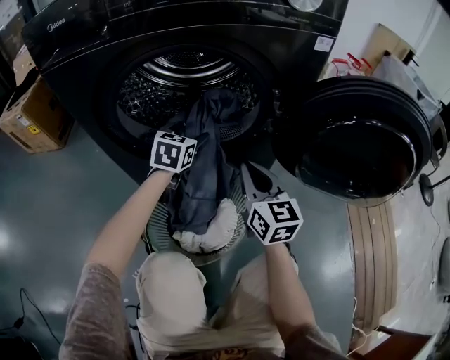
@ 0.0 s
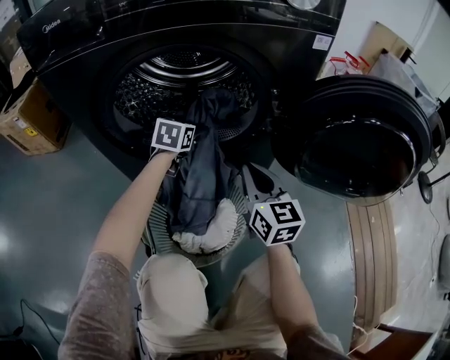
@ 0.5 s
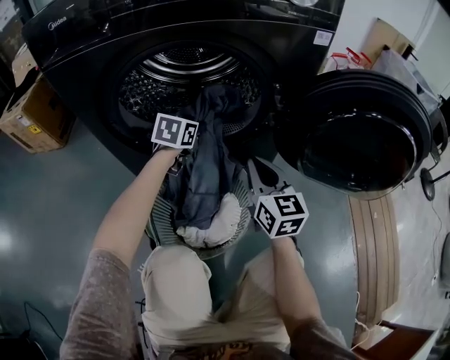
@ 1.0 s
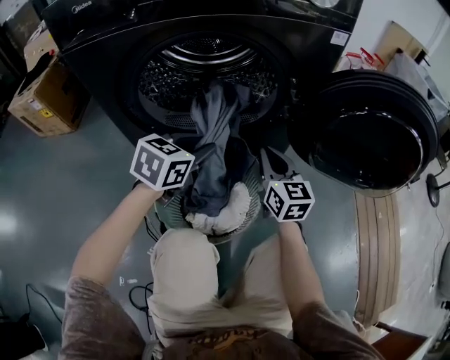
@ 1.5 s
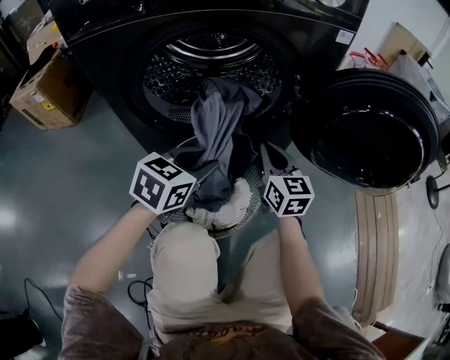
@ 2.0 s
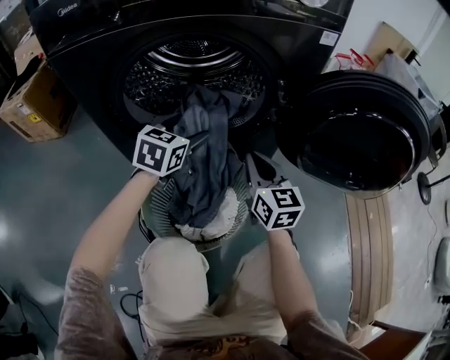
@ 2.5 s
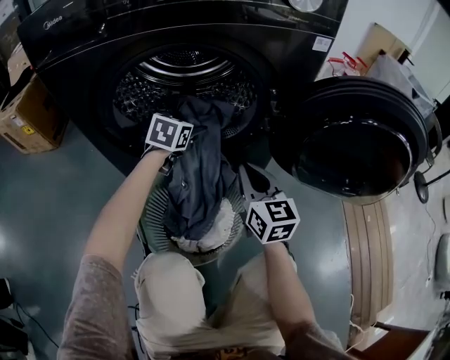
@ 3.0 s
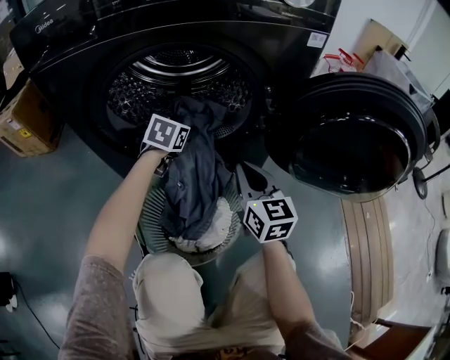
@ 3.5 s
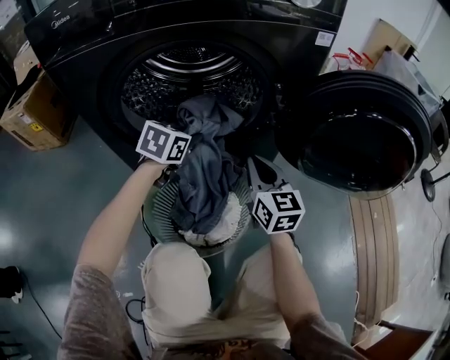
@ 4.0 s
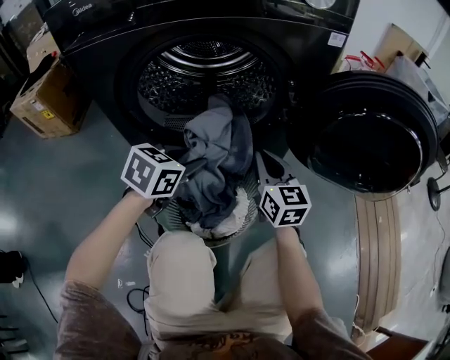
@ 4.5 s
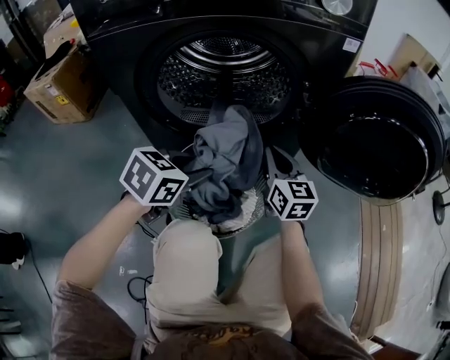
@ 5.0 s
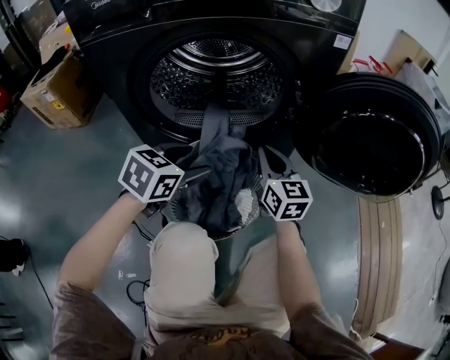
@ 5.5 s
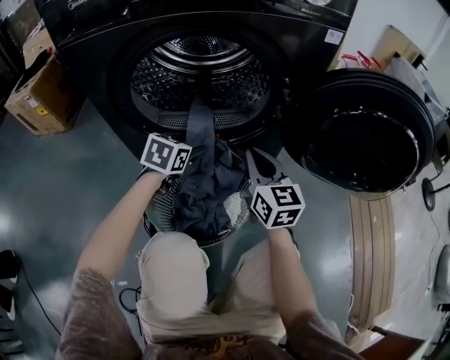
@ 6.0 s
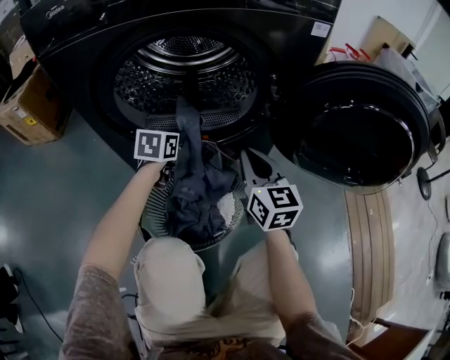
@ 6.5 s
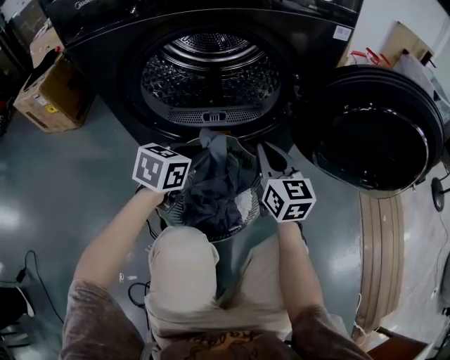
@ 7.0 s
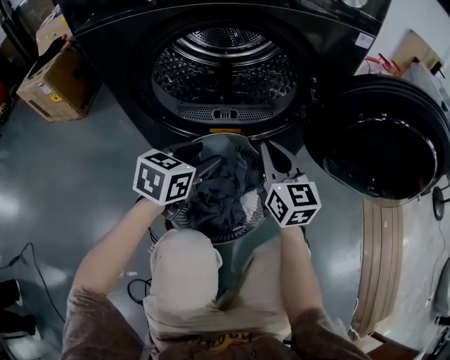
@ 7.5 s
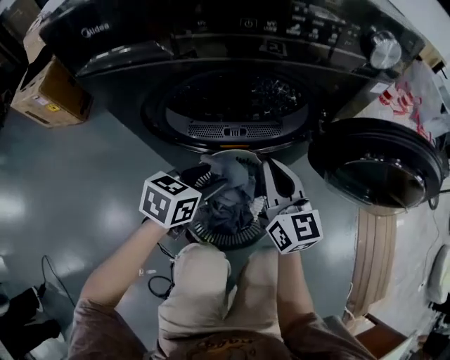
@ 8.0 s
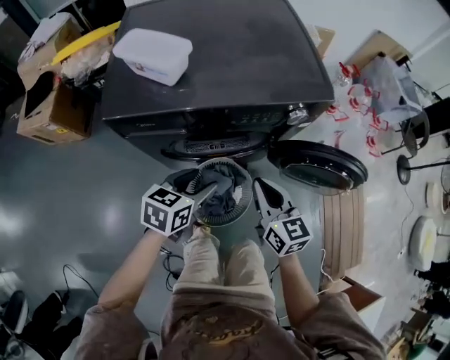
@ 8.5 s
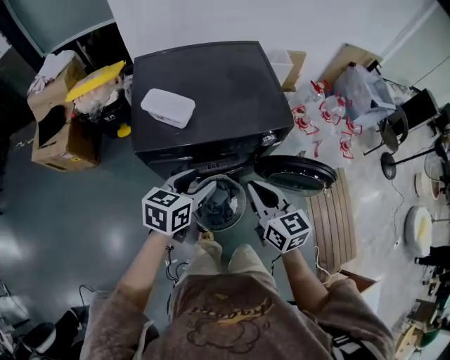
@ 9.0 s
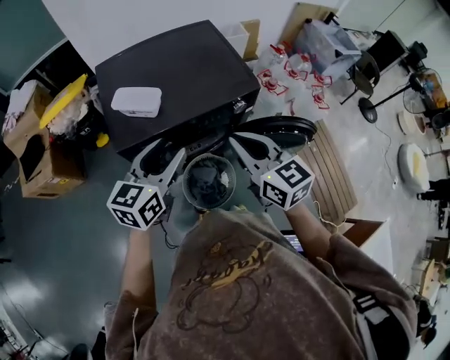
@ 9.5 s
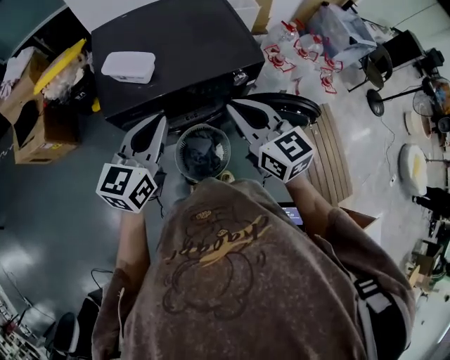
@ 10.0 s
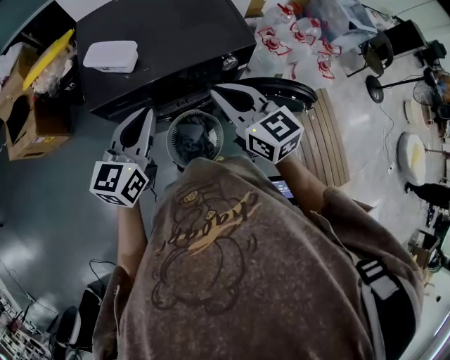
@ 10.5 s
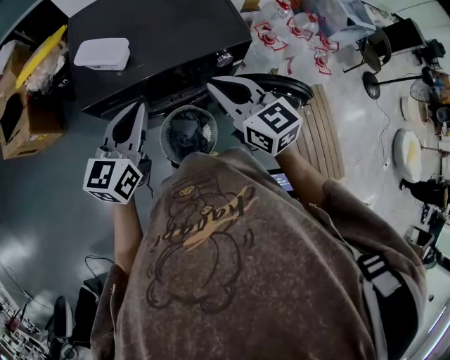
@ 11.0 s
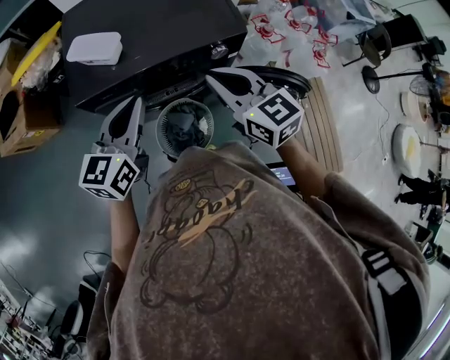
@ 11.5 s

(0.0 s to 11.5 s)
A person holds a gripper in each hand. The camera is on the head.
0.0 s - 2.0 s: The left gripper is displaced backward by about 20 cm, and closes.
2.0 s - 4.0 s: The left gripper is displaced forward by approximately 15 cm, and opens, then closes once more.
4.0 s - 6.0 s: The left gripper reaches about 15 cm backward, then returns, and opens its fingers.
6.0 s - 7.5 s: The left gripper moves backward and upward, roughly 10 cm, and closes, then opens again.
7.5 s - 9.5 s: Both grippers travel together upward, roughly 60 cm. The left gripper changes its angle by some 20 degrees.
9.5 s - 11.5 s: The left gripper closes up. Meanwhile the right gripper changes place by about 10 cm.

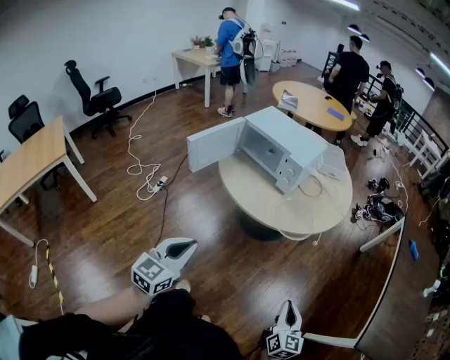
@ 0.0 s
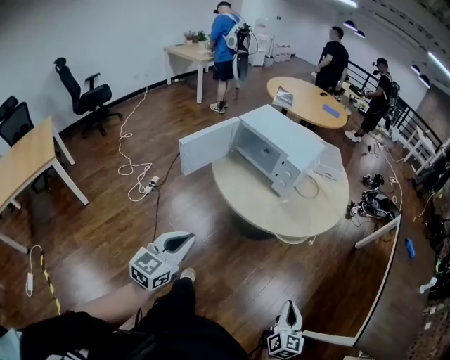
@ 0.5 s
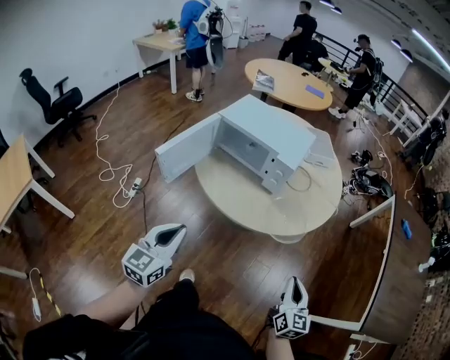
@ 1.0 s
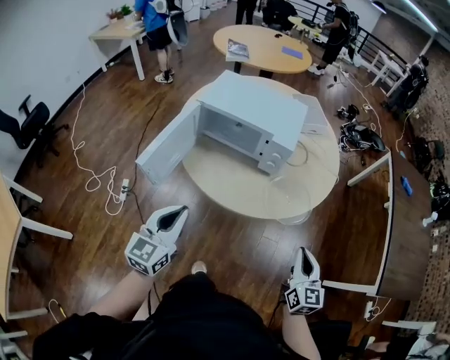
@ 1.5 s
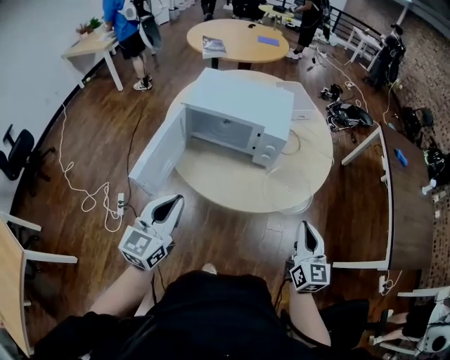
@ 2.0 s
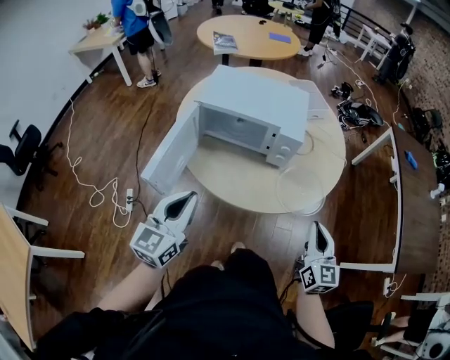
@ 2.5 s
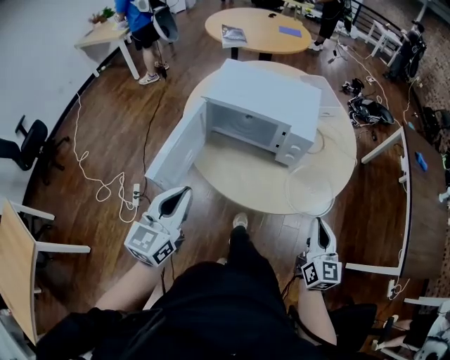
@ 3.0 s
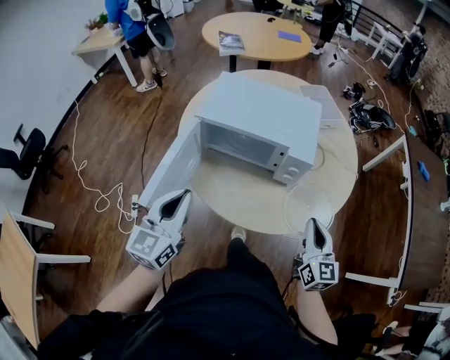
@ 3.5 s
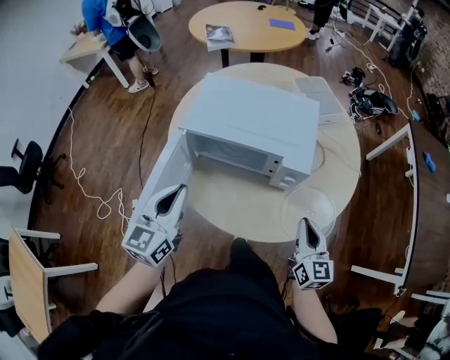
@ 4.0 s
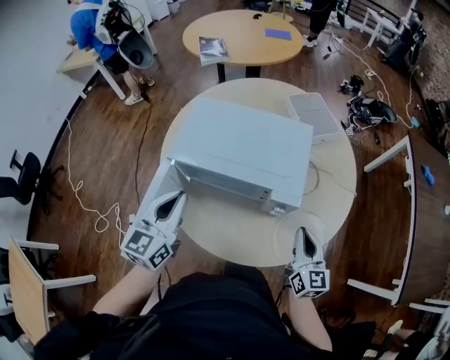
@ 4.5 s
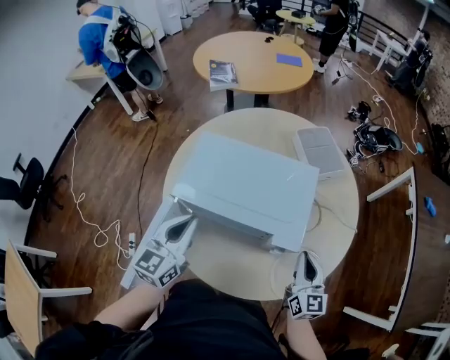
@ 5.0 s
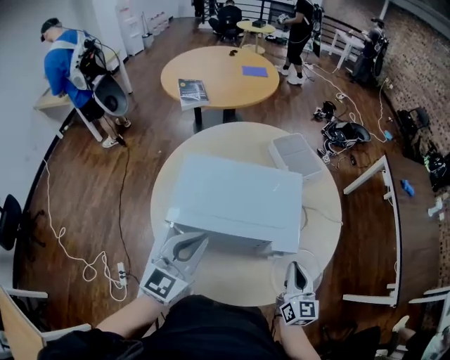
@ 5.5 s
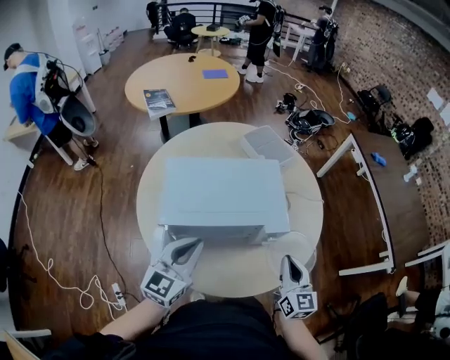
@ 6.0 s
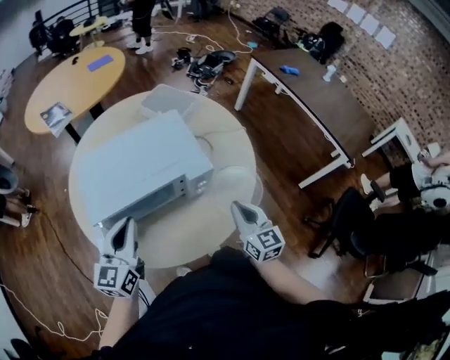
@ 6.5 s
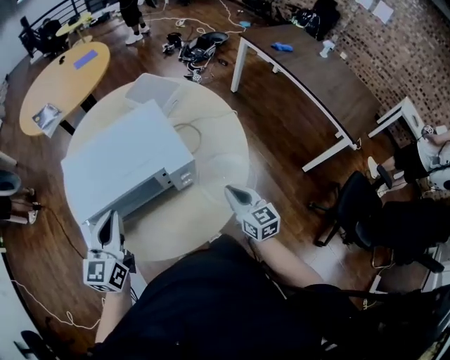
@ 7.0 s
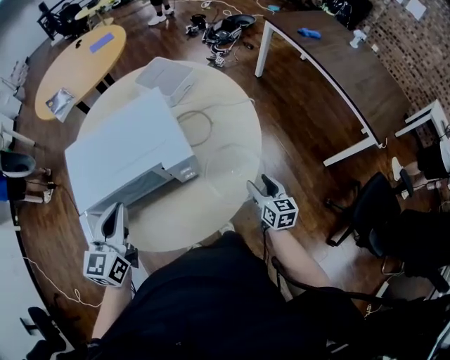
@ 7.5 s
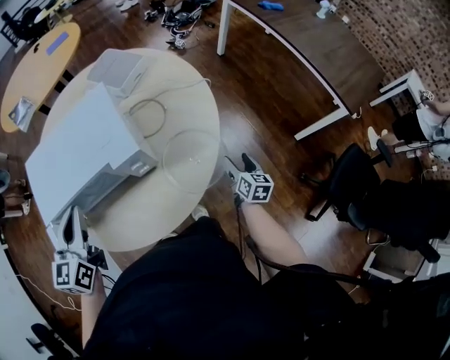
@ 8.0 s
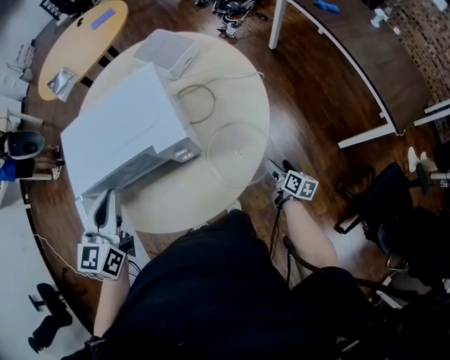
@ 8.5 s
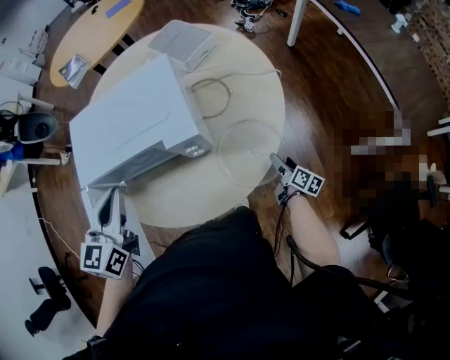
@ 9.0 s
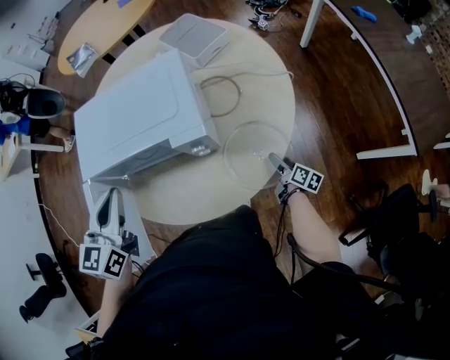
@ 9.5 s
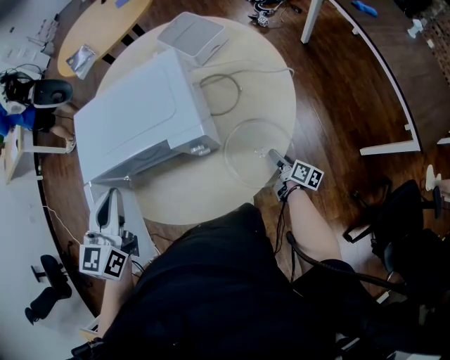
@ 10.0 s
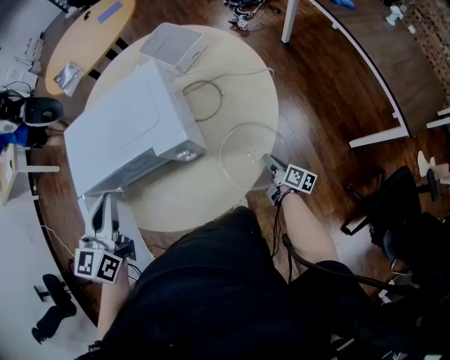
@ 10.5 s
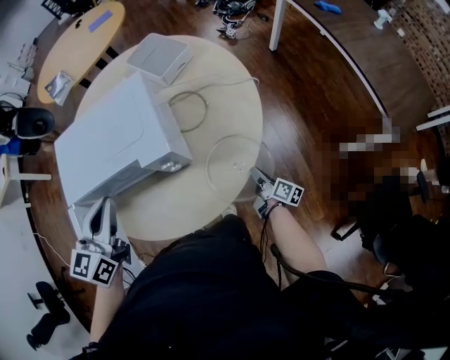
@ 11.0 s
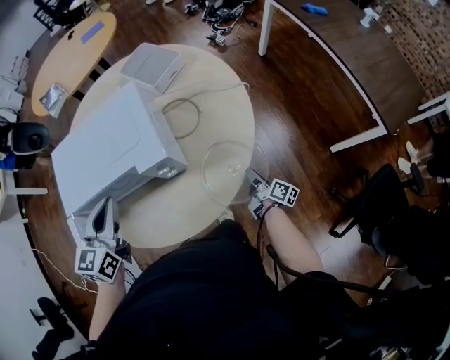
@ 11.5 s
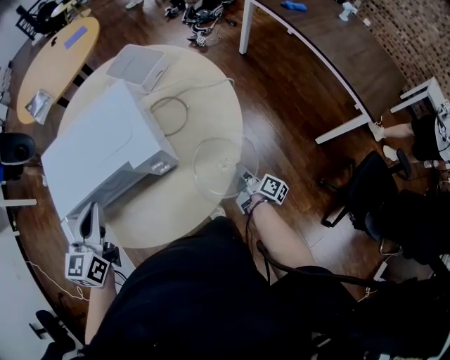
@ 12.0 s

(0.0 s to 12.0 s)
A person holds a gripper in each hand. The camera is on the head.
0.0 s - 2.0 s: The left gripper moves forward and to the left, about 30 cm; the right gripper travels forward, to the left and upward by approximately 25 cm.
2.0 s - 4.0 s: The right gripper is displaced forward and to the left by about 15 cm. The left gripper moves forward, approximately 15 cm.
4.0 s - 6.0 s: The left gripper shifts roughly 10 cm forward, and turns by some 30 degrees; the right gripper is displaced to the left by approximately 5 cm, and reaches approximately 10 cm forward, then returns.
6.0 s - 8.0 s: The left gripper ends up approximately 5 cm from where it was; the right gripper shifts some 30 cm to the right and downward, rotates some 40 degrees, and opens.
8.0 s - 10.0 s: The right gripper shifts approximately 10 cm downward and to the left, and changes its angle by approximately 40 degrees.
10.0 s - 12.0 s: The right gripper shifts roughly 5 cm upward, turns by about 20 degrees, and closes its fingers.

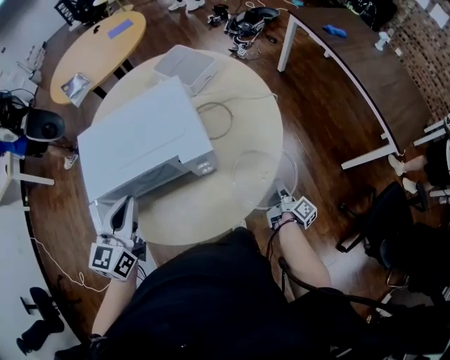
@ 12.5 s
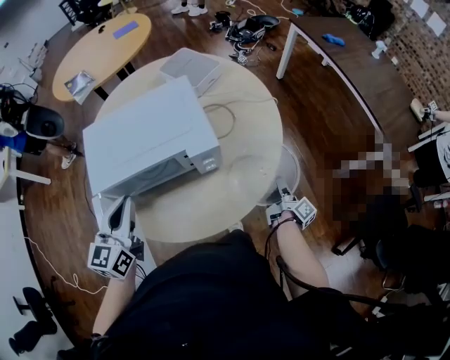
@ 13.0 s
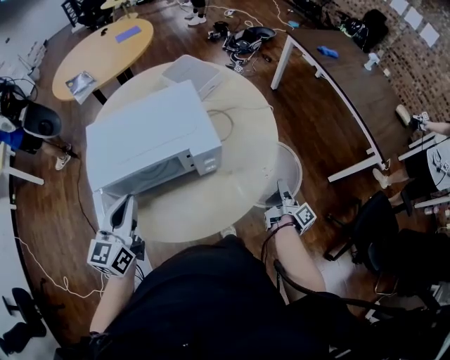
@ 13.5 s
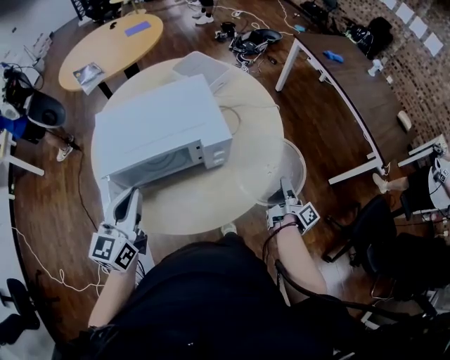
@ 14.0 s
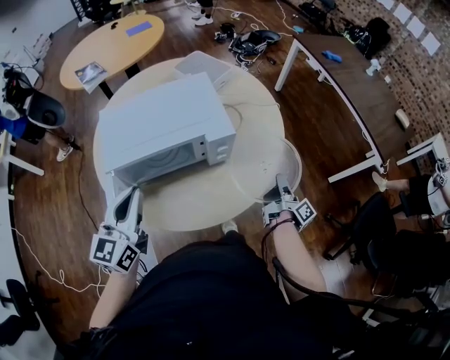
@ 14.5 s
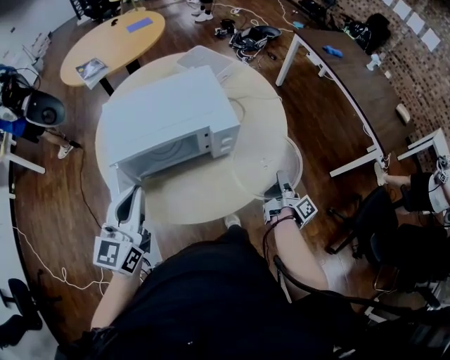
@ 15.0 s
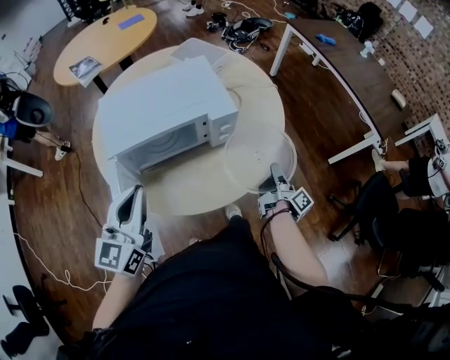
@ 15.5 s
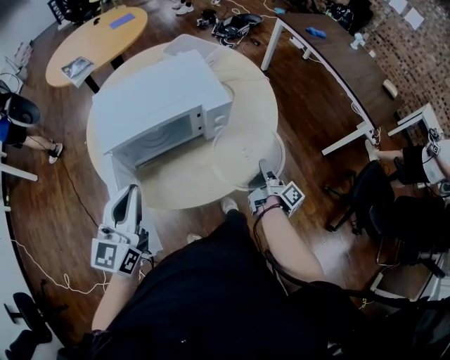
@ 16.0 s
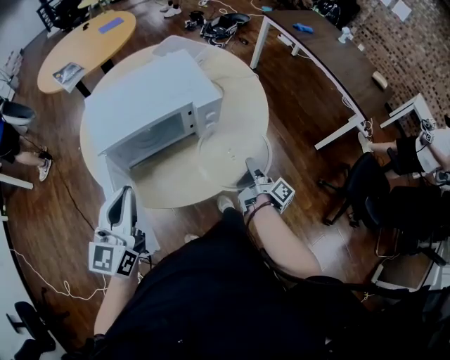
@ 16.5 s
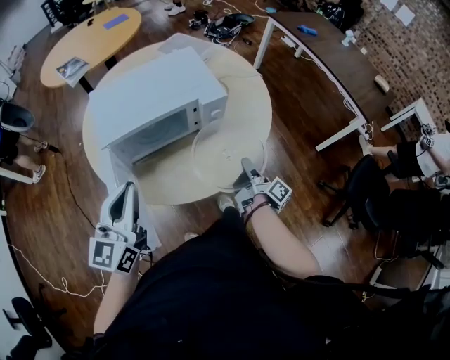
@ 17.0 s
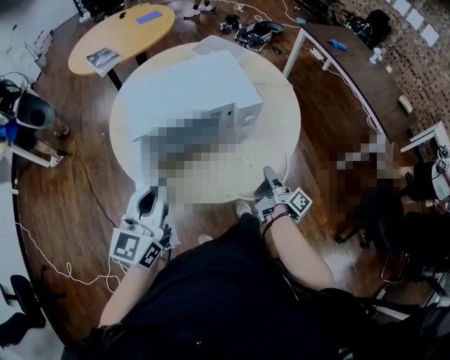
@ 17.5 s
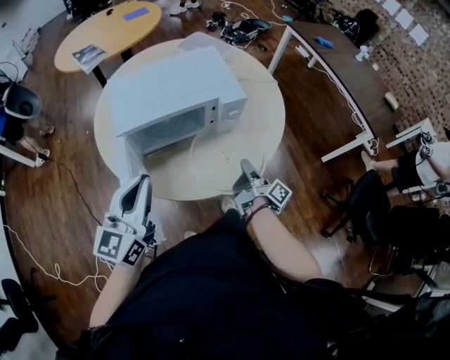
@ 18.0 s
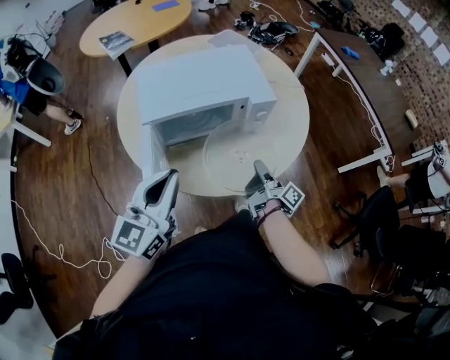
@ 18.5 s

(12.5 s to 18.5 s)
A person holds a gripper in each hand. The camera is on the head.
12.5 s - 14.5 s: The right gripper shifts roughly 10 cm upward. Meanwhile the left gripper moves backward, approximately 5 cm.
14.5 s - 16.5 s: The left gripper is displaced backward by some 5 cm. The right gripper is displaced backward and to the left by some 10 cm.
16.5 s - 18.5 s: The right gripper travels to the left by some 10 cm.
